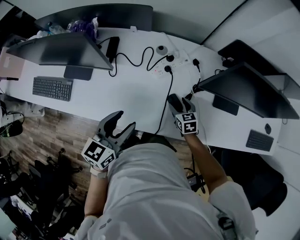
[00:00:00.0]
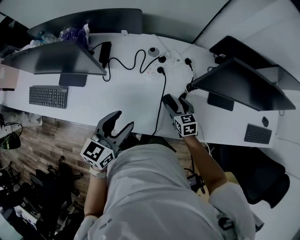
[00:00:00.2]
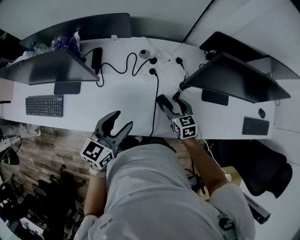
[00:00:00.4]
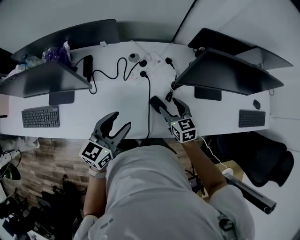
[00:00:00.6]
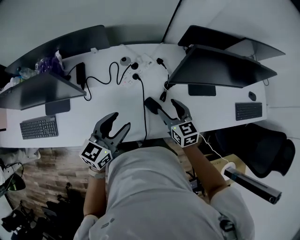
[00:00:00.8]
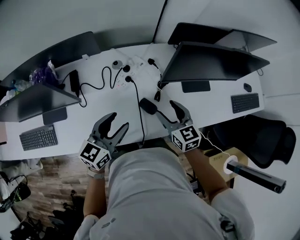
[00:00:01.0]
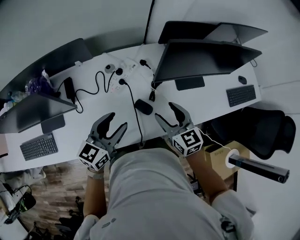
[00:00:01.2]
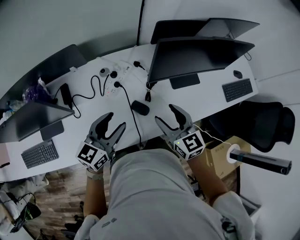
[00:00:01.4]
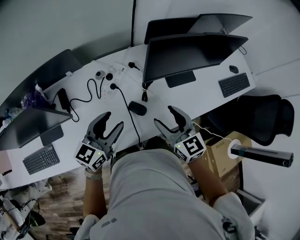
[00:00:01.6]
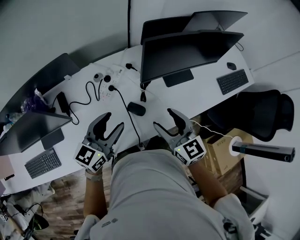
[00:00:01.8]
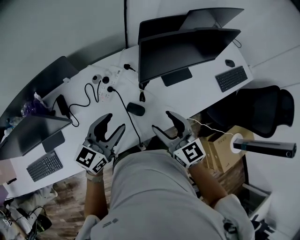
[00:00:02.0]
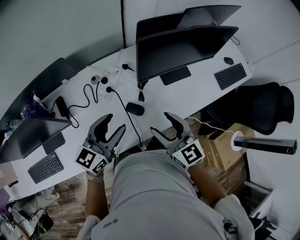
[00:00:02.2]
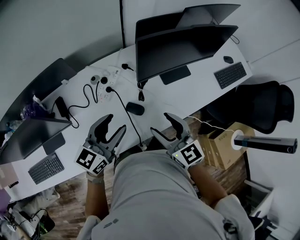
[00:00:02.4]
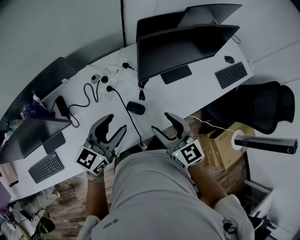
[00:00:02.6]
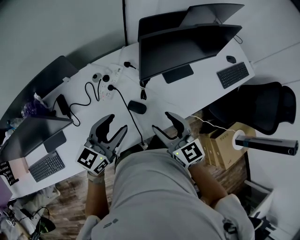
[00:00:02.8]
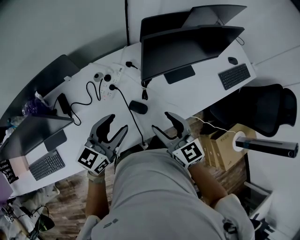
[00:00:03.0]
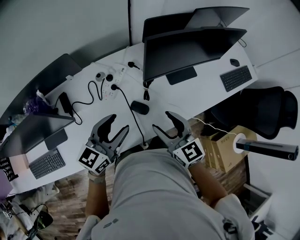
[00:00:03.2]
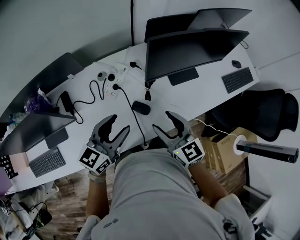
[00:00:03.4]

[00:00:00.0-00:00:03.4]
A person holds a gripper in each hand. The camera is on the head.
00:00:00.0 to 00:00:01.6: The right gripper goes about 25 cm upward, and rotates approximately 30 degrees, while the left gripper moves roughly 10 cm, and changes its angle by roughly 30 degrees.
00:00:01.6 to 00:00:03.4: The grippers make only small movements.

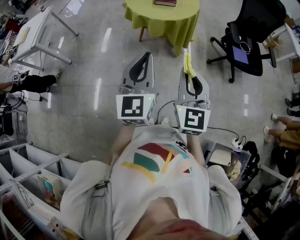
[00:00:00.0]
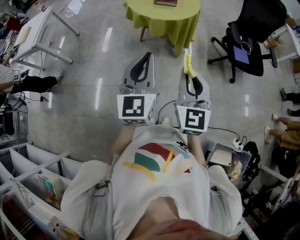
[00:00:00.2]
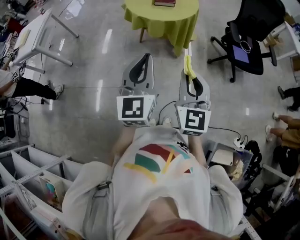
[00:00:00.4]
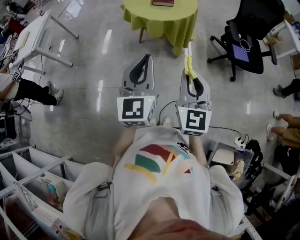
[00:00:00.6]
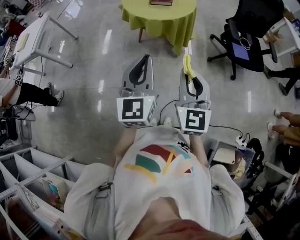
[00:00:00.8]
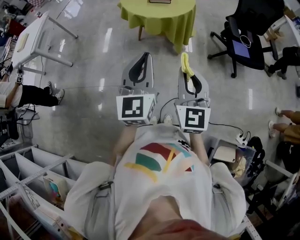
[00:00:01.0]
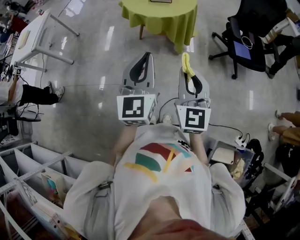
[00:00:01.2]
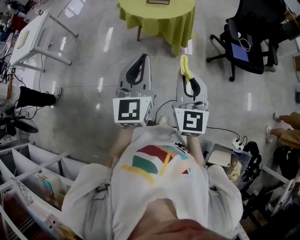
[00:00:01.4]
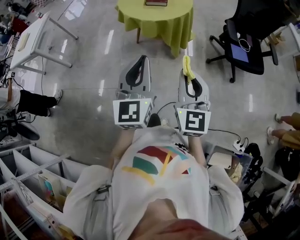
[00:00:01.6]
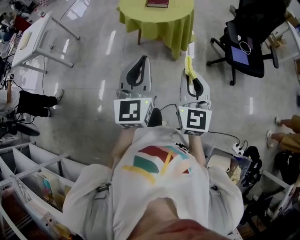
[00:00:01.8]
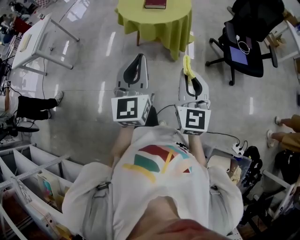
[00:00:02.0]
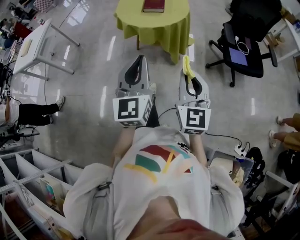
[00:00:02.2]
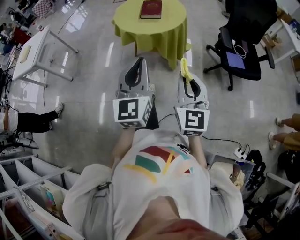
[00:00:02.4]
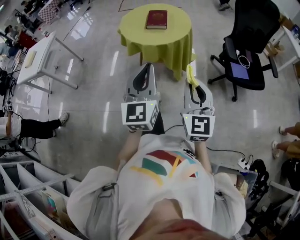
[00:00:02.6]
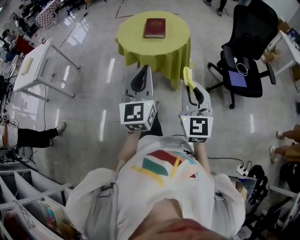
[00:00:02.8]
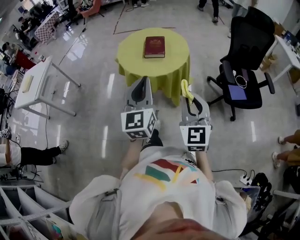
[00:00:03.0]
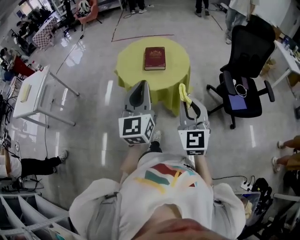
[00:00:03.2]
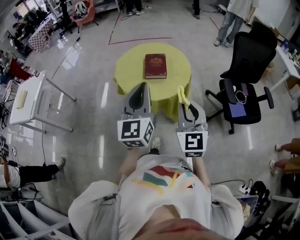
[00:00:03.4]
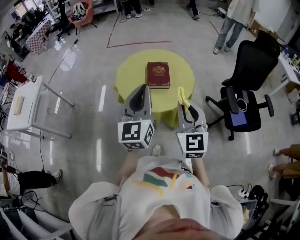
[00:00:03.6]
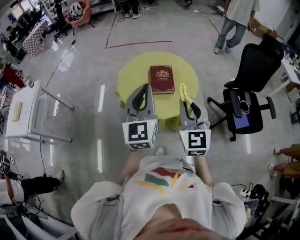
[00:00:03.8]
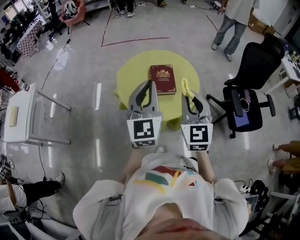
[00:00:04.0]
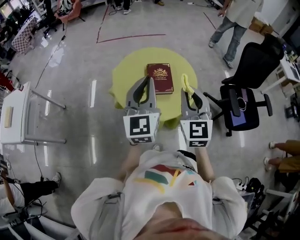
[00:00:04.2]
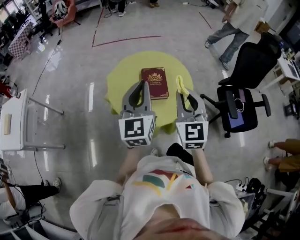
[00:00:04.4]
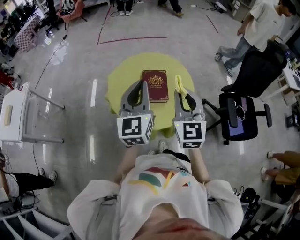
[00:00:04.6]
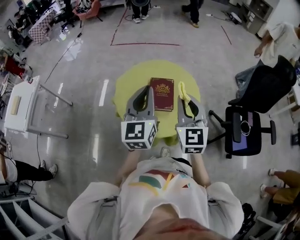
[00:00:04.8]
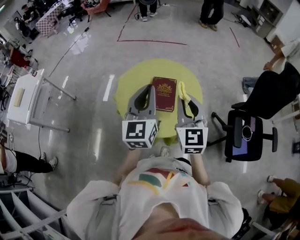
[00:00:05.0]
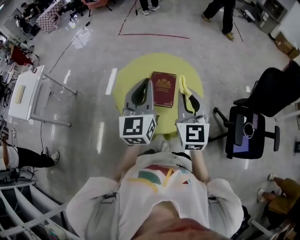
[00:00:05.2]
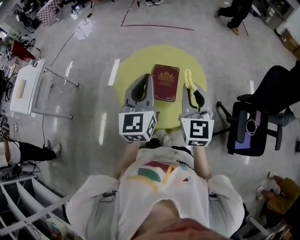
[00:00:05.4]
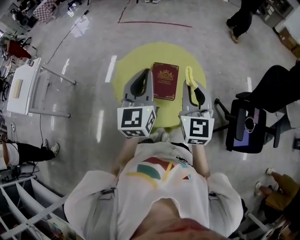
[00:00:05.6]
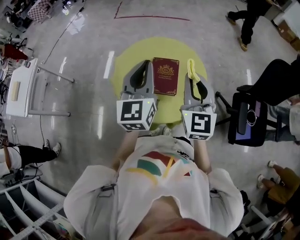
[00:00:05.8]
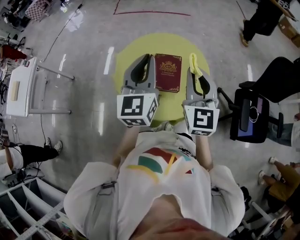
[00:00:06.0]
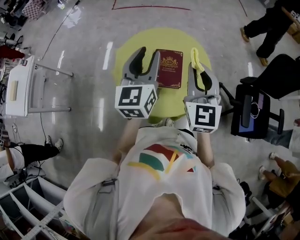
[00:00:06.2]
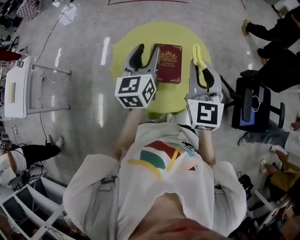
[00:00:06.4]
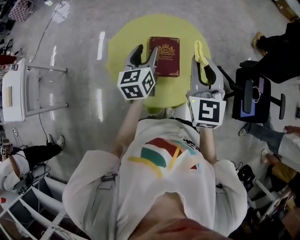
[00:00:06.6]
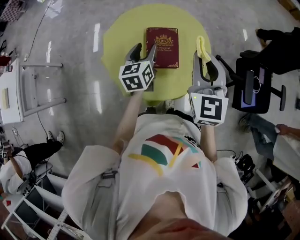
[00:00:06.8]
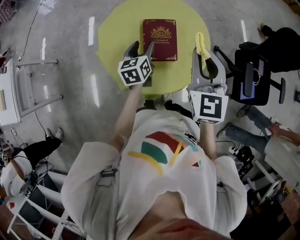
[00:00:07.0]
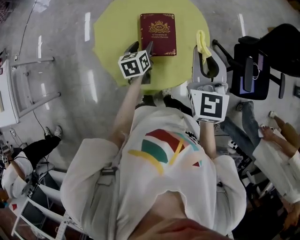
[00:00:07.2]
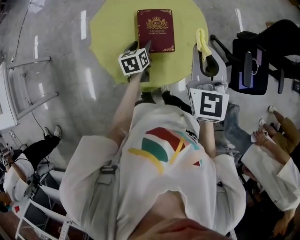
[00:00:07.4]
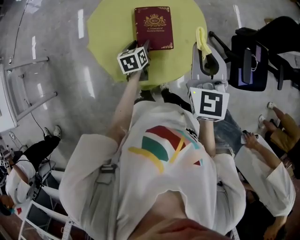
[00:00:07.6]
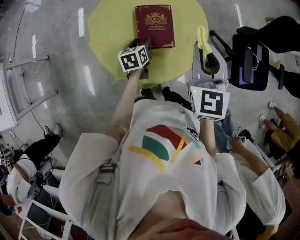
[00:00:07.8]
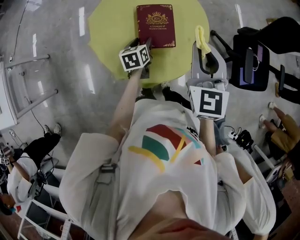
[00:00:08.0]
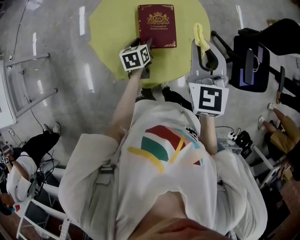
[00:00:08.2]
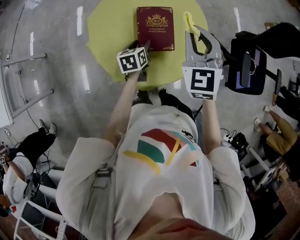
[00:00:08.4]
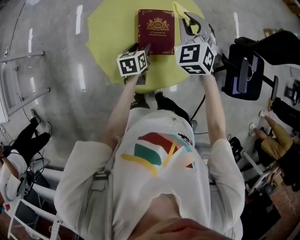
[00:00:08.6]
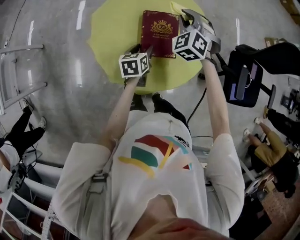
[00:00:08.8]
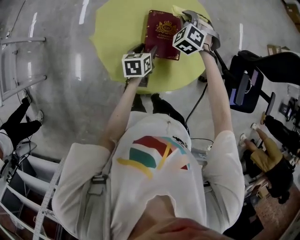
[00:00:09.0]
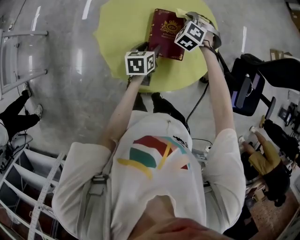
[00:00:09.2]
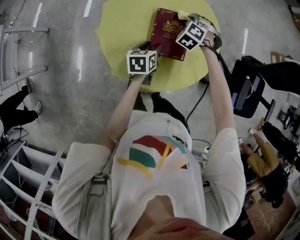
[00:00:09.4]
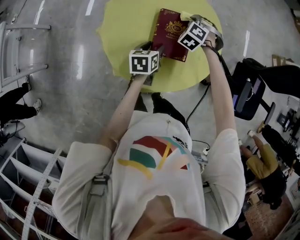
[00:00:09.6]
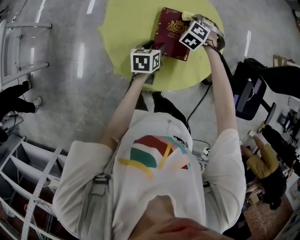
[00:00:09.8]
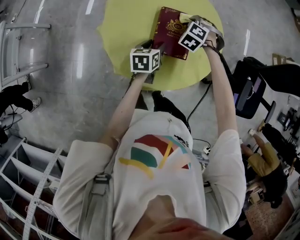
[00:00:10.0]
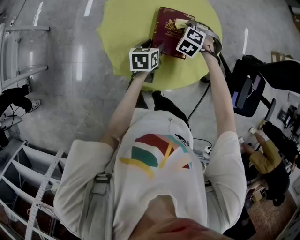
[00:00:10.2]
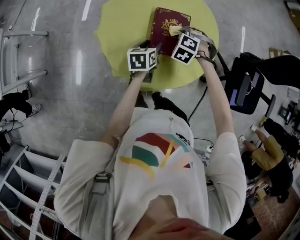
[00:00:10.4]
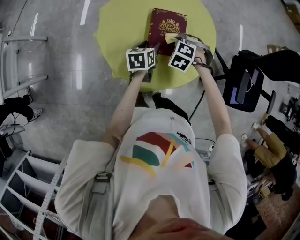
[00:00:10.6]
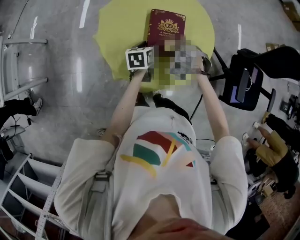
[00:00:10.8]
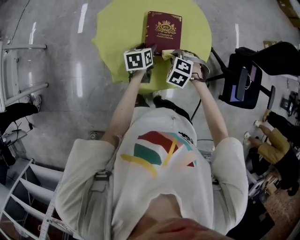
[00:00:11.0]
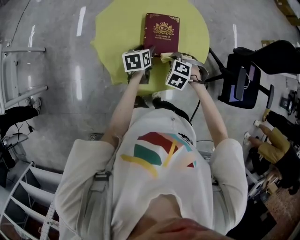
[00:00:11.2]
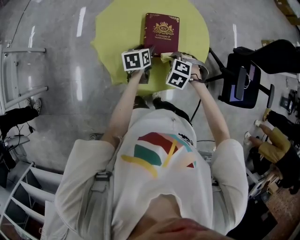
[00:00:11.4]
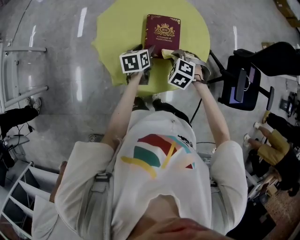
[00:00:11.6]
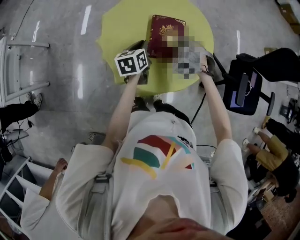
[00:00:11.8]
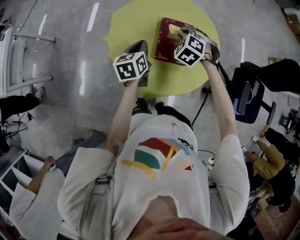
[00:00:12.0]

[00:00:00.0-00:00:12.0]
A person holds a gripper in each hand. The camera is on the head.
00:00:00.0 to 00:00:01.6: The grippers both shift to the right by roughly 5 cm.
00:00:01.6 to 00:00:03.0: Both grippers move forward, about 20 cm.
00:00:03.0 to 00:00:04.4: Both grippers move forward, about 35 cm.
00:00:04.4 to 00:00:06.0: The grippers both shift forward by about 10 cm.
00:00:06.0 to 00:00:07.6: The right gripper travels downward by roughly 5 cm; the left gripper moves downward, some 35 cm, tilts its fingers approximately 40 degrees downward, and opens its fingers.
00:00:07.6 to 00:00:09.0: The right gripper goes some 30 cm downward, forward and to the left, and rolls counterclockwise, seen from behind, by some 60 degrees.
00:00:09.0 to 00:00:10.4: The right gripper is displaced backward and downward by some 10 cm, and swivels approximately 20 degrees.
00:00:10.4 to 00:00:12.0: The grippers both shift upward by about 5 cm. The left gripper closes.

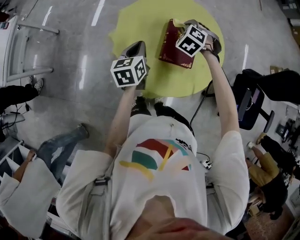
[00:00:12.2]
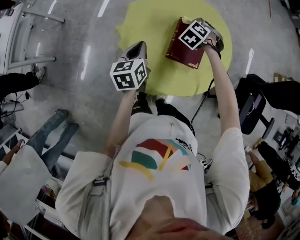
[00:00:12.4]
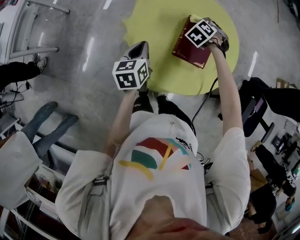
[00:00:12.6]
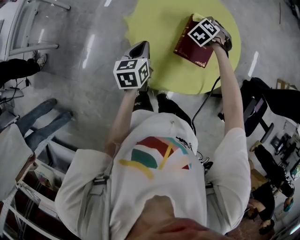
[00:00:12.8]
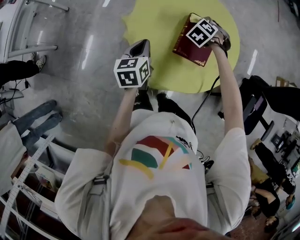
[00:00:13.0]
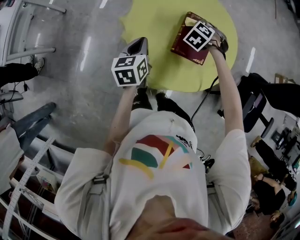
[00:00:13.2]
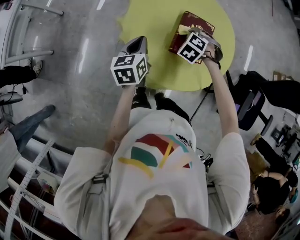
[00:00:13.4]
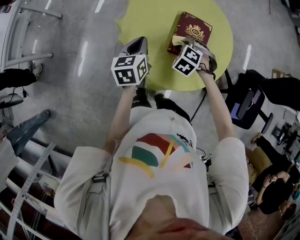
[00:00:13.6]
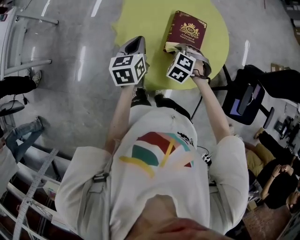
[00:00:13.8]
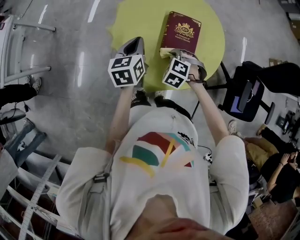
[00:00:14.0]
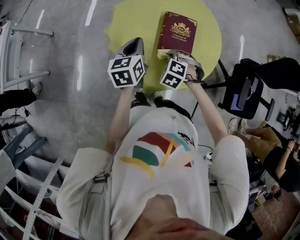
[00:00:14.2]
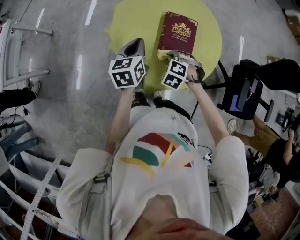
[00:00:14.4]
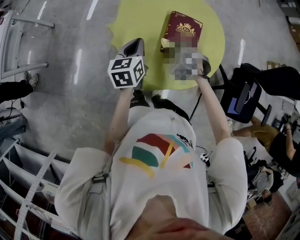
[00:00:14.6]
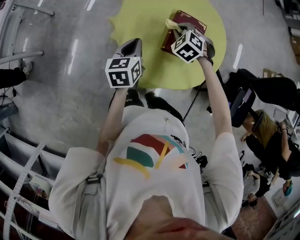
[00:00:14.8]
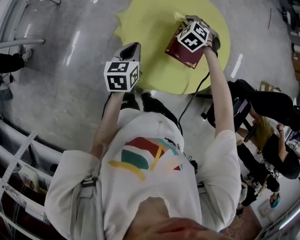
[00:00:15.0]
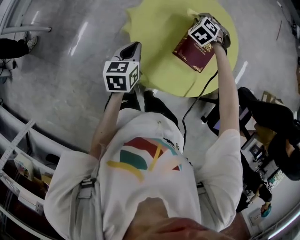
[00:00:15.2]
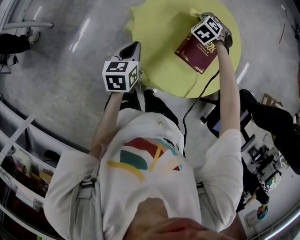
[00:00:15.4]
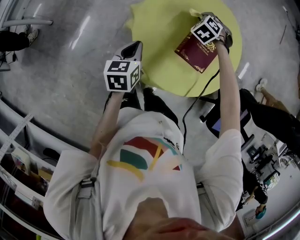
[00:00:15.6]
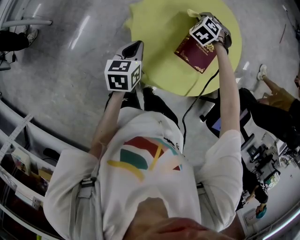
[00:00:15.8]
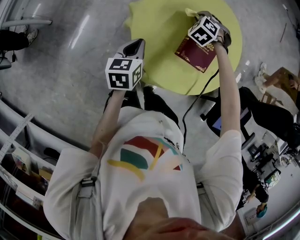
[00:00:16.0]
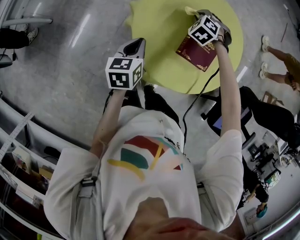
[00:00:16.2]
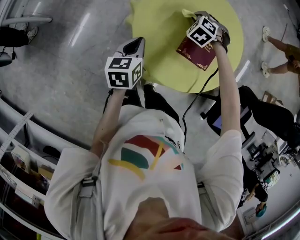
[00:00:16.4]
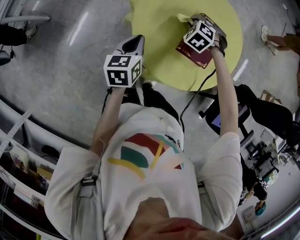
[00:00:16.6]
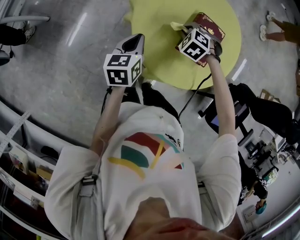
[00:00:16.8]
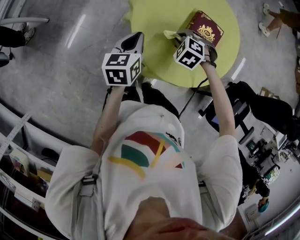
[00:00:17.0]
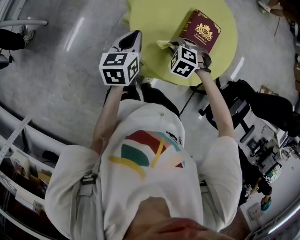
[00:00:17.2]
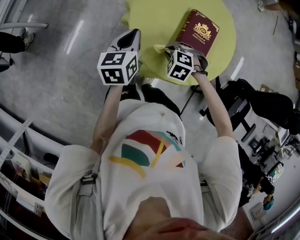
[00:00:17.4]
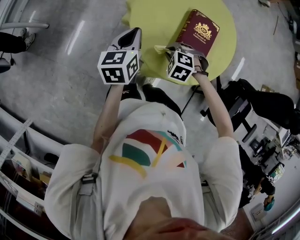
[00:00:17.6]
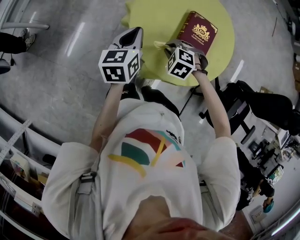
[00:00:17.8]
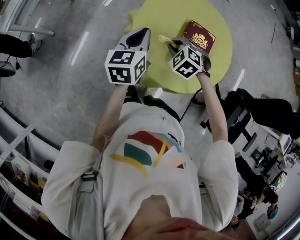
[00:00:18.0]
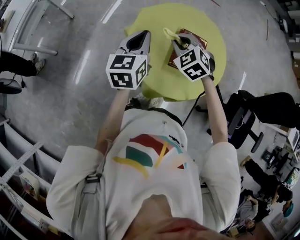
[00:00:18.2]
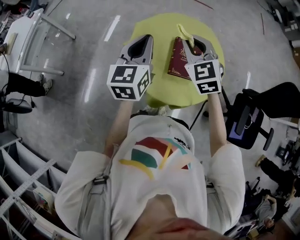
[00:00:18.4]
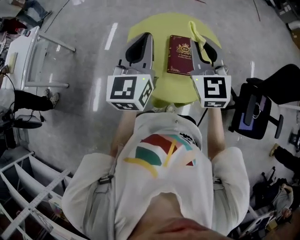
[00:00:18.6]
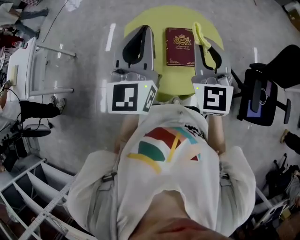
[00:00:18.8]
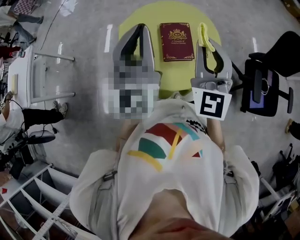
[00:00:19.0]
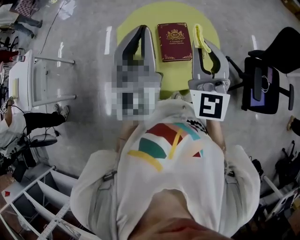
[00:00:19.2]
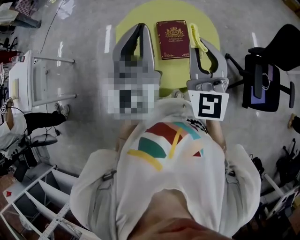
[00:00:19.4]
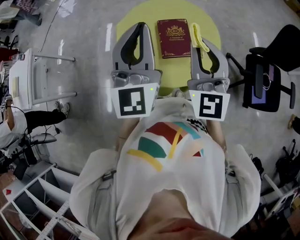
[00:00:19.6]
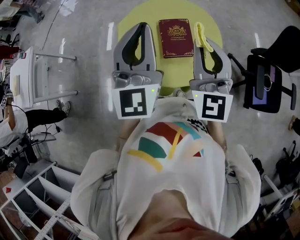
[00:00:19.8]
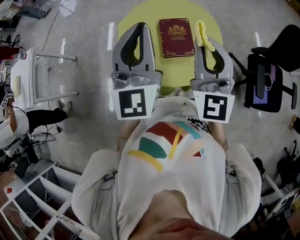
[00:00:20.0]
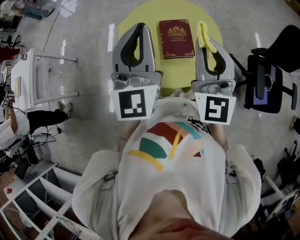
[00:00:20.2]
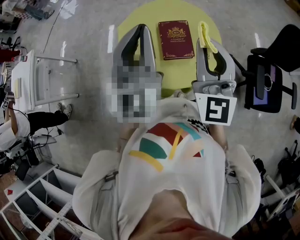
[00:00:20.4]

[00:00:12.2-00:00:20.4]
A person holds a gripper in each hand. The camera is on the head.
00:00:12.2 to 00:00:13.8: The right gripper heads backward and downward, covering about 15 cm.
00:00:13.8 to 00:00:15.4: The right gripper travels forward by approximately 20 cm; the left gripper moves backward, about 5 cm.
00:00:15.4 to 00:00:17.2: The right gripper changes place by approximately 25 cm, and rotates some 20 degrees.
00:00:17.2 to 00:00:18.8: Both grippers travel together upward, some 35 cm. The right gripper tips its fingers upward by about 70 degrees. The left gripper points its fingers roughly 40 degrees further upward.
00:00:18.8 to 00:00:20.4: The right gripper moves about 5 cm.
